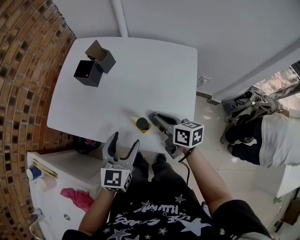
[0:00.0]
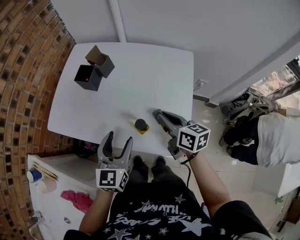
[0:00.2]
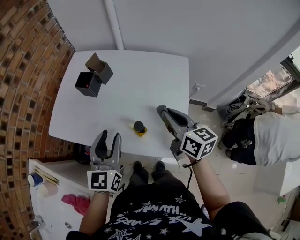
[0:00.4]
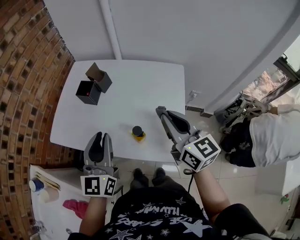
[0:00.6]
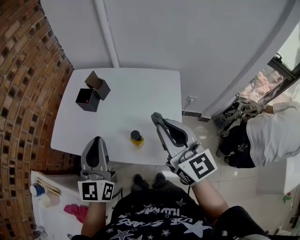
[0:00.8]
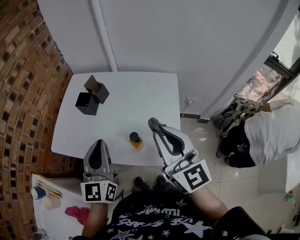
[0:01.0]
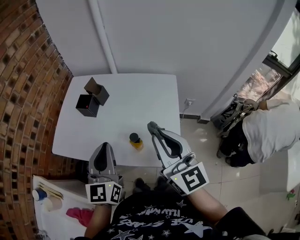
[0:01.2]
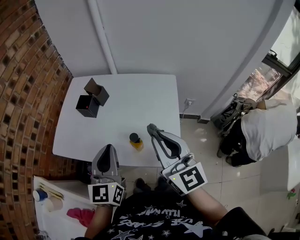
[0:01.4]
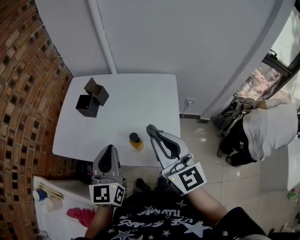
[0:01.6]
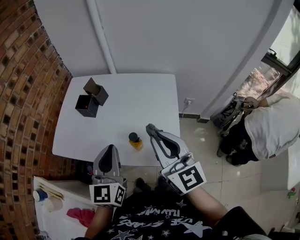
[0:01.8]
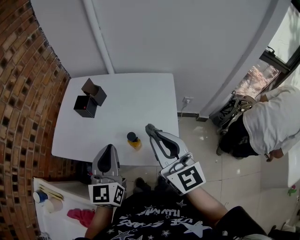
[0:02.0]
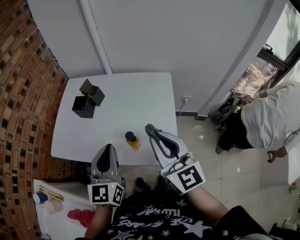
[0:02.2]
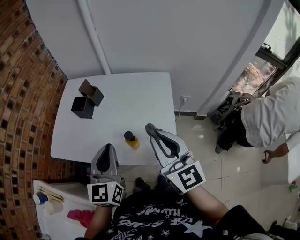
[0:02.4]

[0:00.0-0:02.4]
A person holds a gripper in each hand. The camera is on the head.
0:00.0 to 0:01.2: The right gripper heads upward, covering approximately 25 cm, and swivels about 50 degrees; the left gripper travels upward by approximately 15 cm, and closes up.
0:01.2 to 0:02.4: The grippers make only small movements.

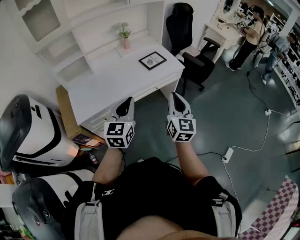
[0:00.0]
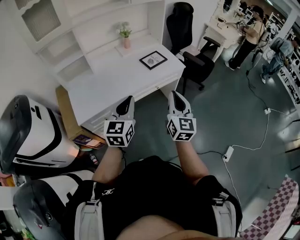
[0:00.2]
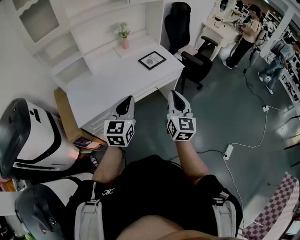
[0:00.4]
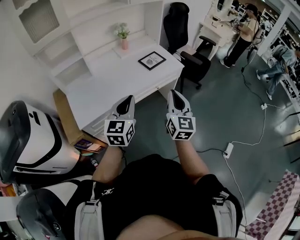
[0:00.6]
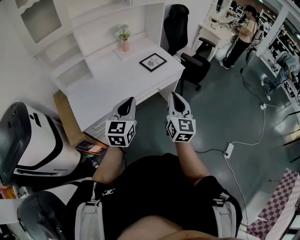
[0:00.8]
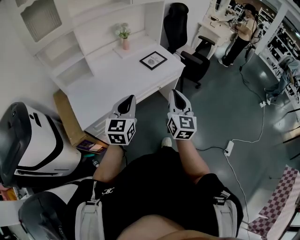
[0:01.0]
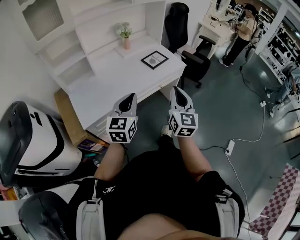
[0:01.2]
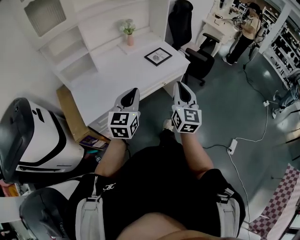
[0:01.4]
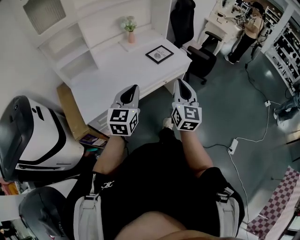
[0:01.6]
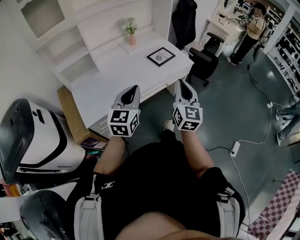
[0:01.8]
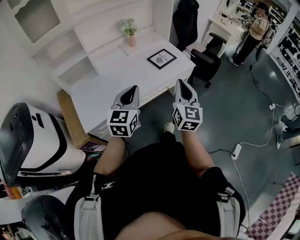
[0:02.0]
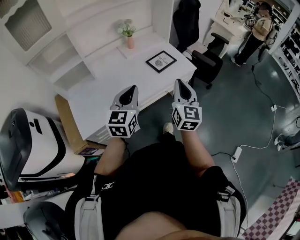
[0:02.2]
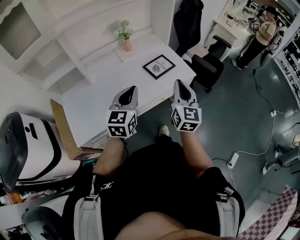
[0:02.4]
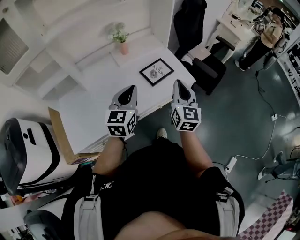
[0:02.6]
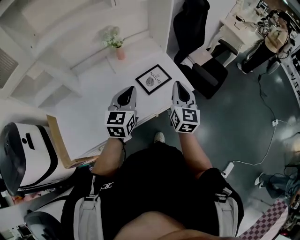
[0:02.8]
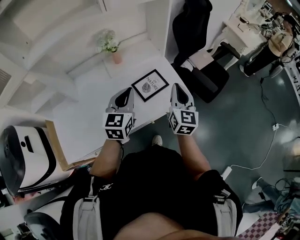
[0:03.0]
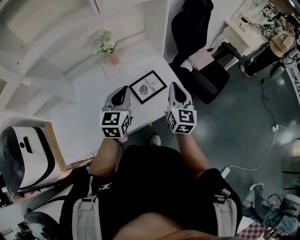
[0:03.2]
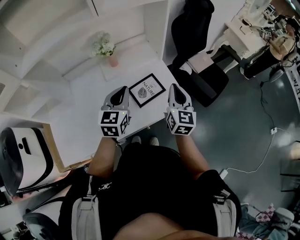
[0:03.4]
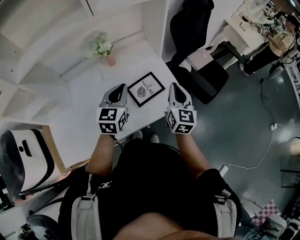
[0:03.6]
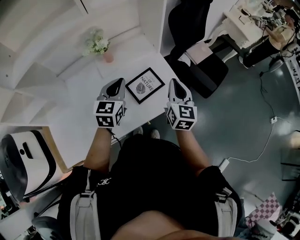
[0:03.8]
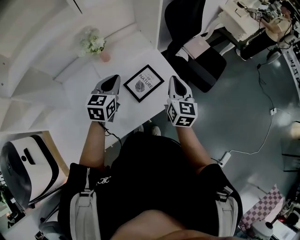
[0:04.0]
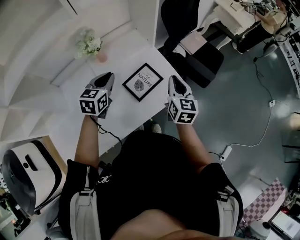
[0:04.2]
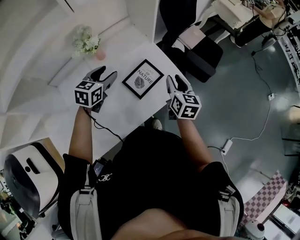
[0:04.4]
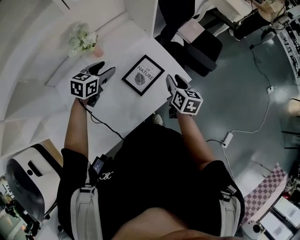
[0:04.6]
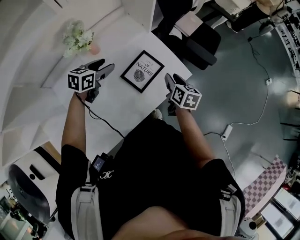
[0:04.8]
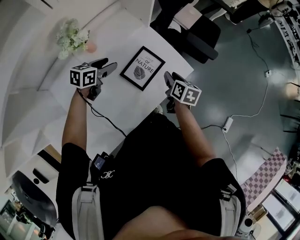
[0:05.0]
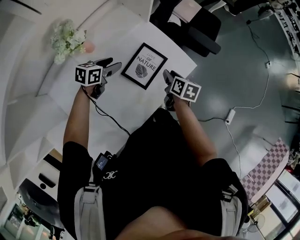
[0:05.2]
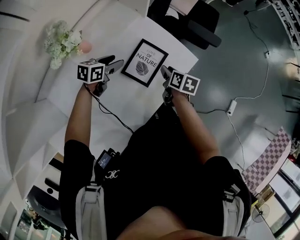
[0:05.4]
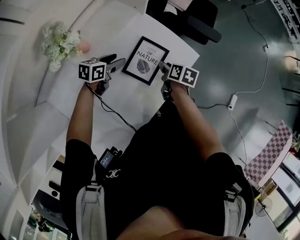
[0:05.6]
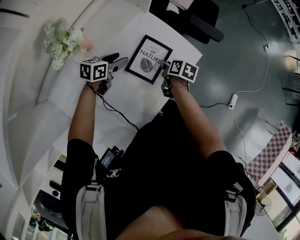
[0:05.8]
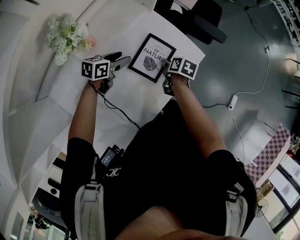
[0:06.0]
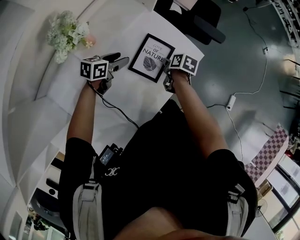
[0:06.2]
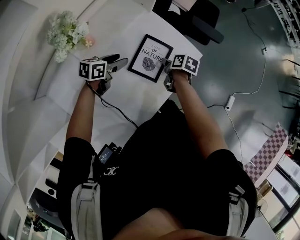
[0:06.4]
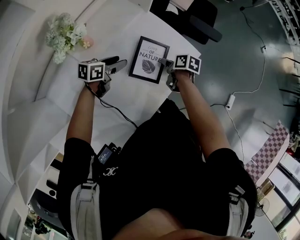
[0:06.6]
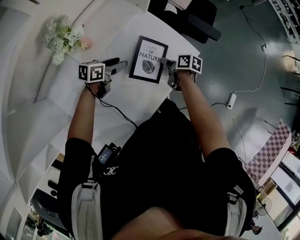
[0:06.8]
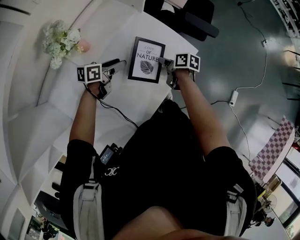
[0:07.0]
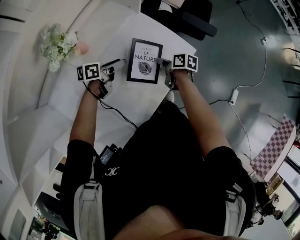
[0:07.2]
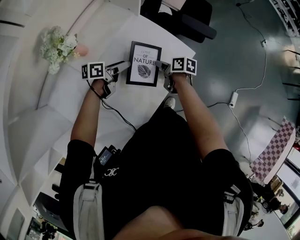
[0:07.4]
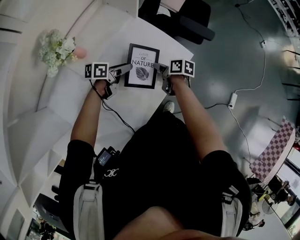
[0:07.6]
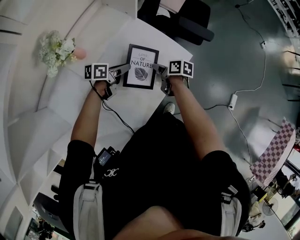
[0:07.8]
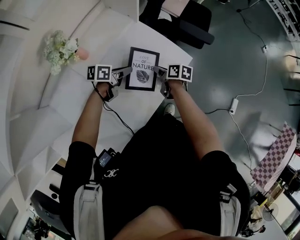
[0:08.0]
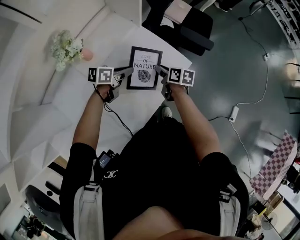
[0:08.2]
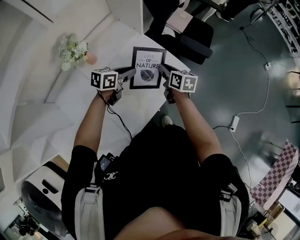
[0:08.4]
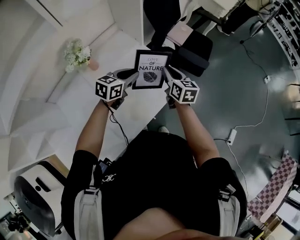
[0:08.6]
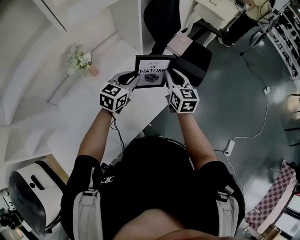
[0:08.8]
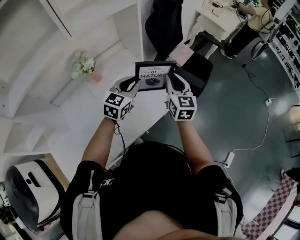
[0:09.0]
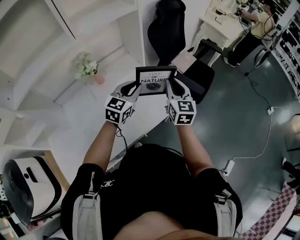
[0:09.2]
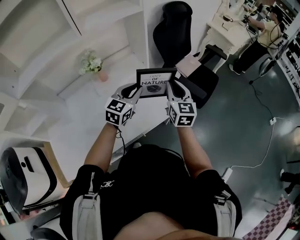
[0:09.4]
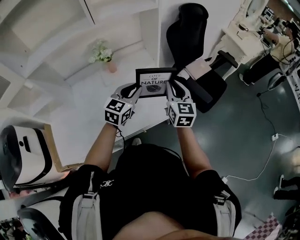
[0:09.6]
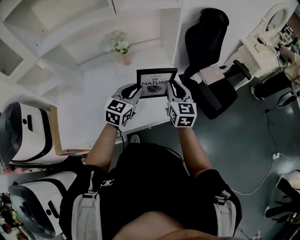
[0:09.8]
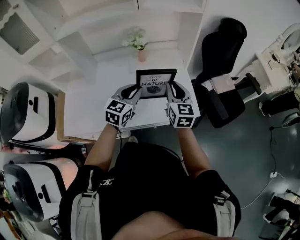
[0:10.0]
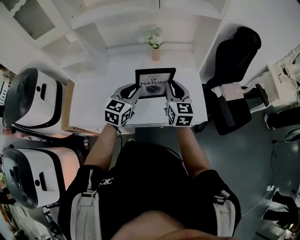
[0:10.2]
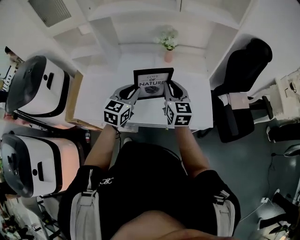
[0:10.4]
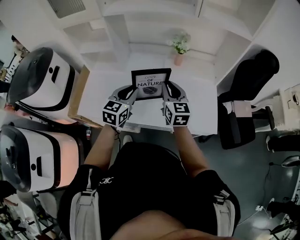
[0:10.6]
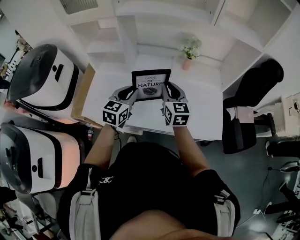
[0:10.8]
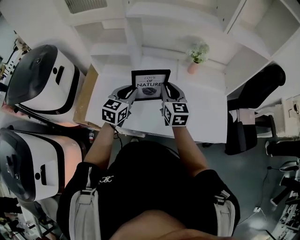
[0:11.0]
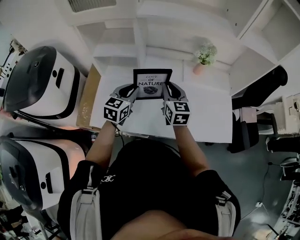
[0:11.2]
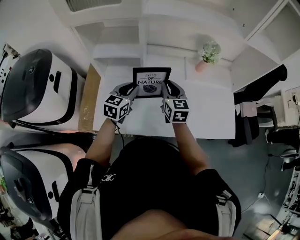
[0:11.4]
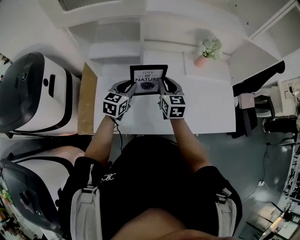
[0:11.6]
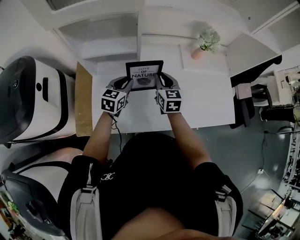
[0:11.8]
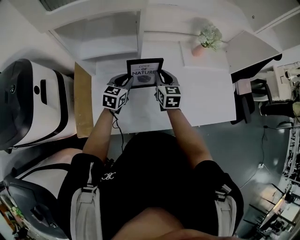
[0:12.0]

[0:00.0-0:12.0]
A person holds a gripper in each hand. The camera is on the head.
0:00.0 to 0:01.6: Both grippers travel together to the left, approximately 10 cm.
0:01.6 to 0:03.0: Both grippers are carried forward, roughly 40 cm.
0:03.0 to 0:04.4: The right gripper shifts some 10 cm downward and forward, swivels about 20 degrees, and opens. Meanwhile the left gripper is displaced forward, downward and to the left by roughly 20 cm, turns by some 30 degrees, and opens its fingers.
0:04.4 to 0:06.0: The two grippers go some 20 cm downward. The left gripper changes its angle by some 40 degrees, while the right gripper points its fingers approximately 40 degrees further downward.
0:06.0 to 0:07.6: The left gripper shifts approximately 5 cm to the right, and turns by approximately 20 degrees. The right gripper turns by approximately 20 degrees.
0:07.6 to 0:09.0: Both grippers move upward, roughly 25 cm. The left gripper swivels approximately 70 degrees, and closes; the right gripper angles its fingers upward, by about 30 degrees.
0:09.0 to 0:10.4: The left gripper shifts by some 25 cm, and swivels approximately 50 degrees. Meanwhile the right gripper moves about 25 cm, and rotates about 50 degrees.
0:10.4 to 0:12.0: Both grippers move to the left, forward and downward, roughly 35 cm.

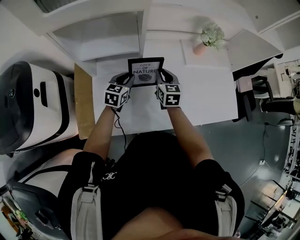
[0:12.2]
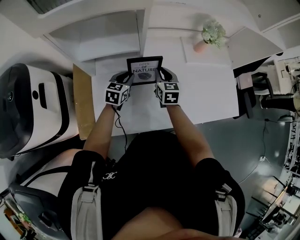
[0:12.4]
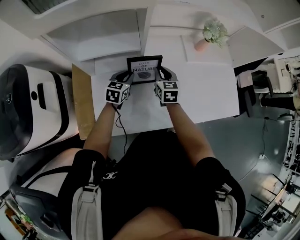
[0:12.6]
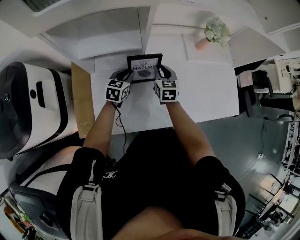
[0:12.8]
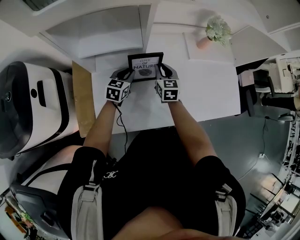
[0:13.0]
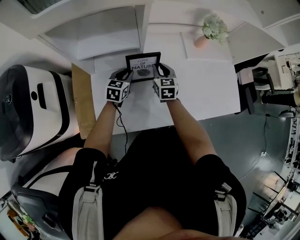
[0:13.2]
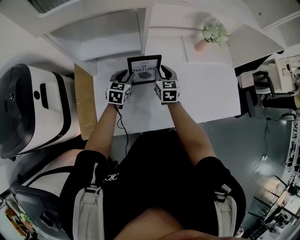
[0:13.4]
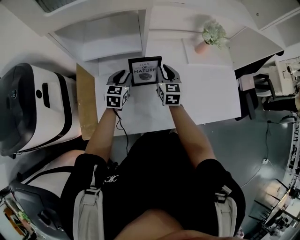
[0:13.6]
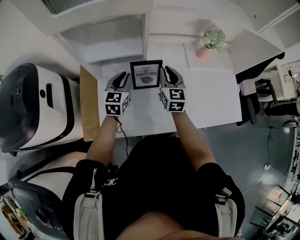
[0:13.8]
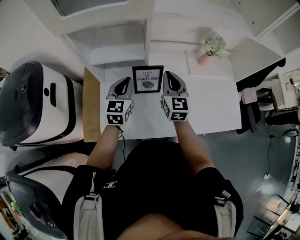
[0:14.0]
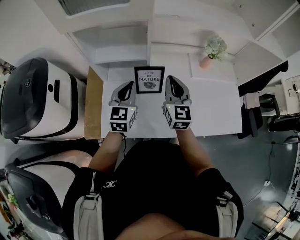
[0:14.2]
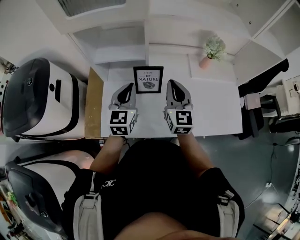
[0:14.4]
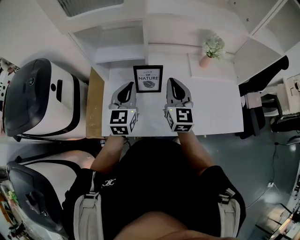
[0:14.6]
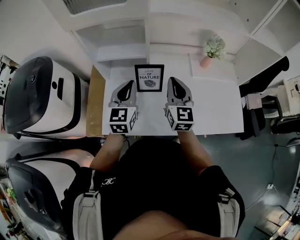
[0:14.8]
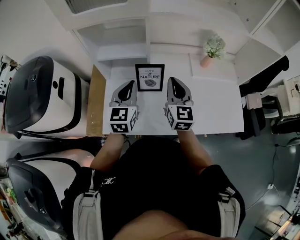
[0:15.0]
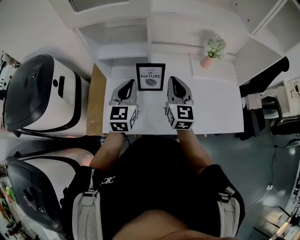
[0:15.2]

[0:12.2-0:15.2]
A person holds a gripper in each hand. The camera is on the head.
0:12.2 to 0:13.8: Both grippers travel together upward, approximately 5 cm.
0:13.8 to 0:15.2: Both grippers move upward and backward, about 15 cm.

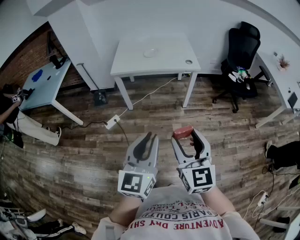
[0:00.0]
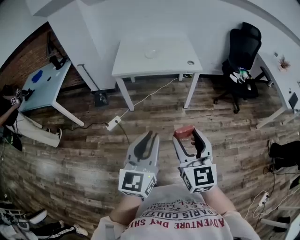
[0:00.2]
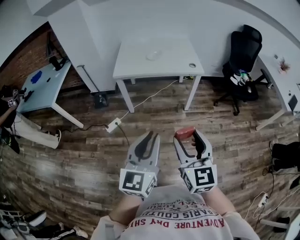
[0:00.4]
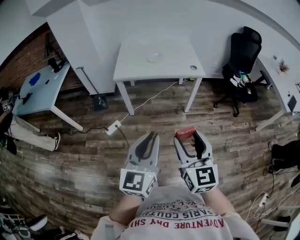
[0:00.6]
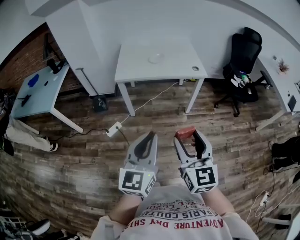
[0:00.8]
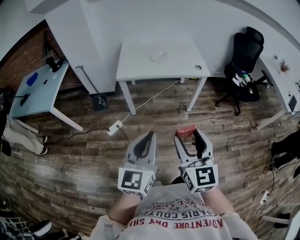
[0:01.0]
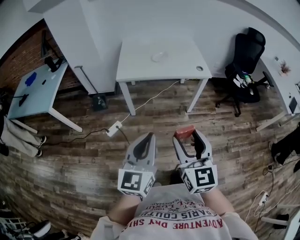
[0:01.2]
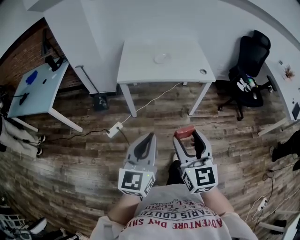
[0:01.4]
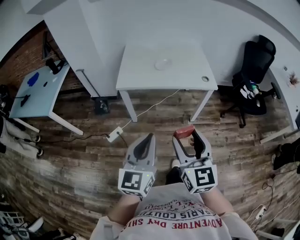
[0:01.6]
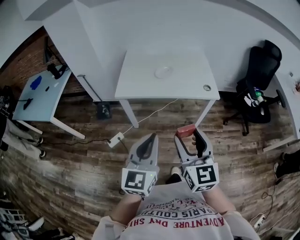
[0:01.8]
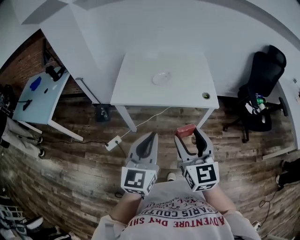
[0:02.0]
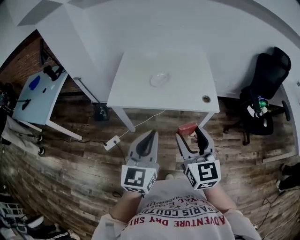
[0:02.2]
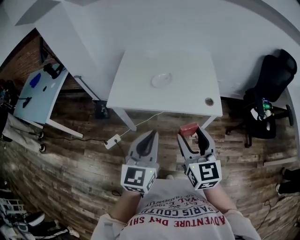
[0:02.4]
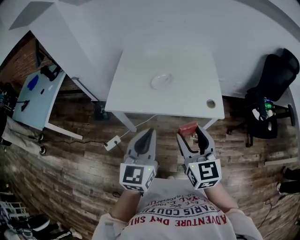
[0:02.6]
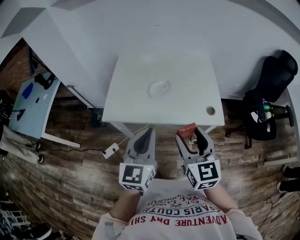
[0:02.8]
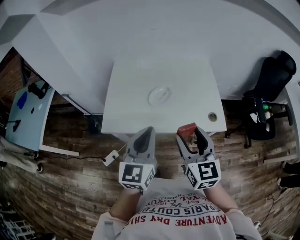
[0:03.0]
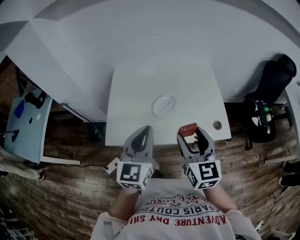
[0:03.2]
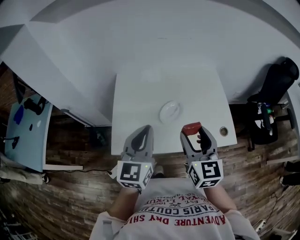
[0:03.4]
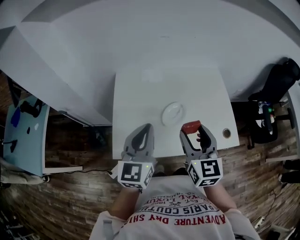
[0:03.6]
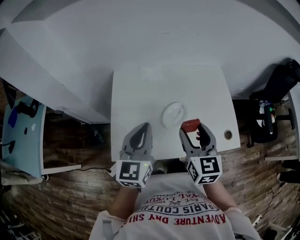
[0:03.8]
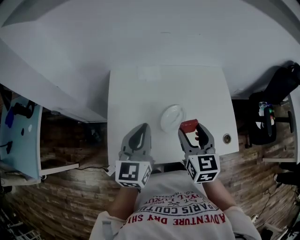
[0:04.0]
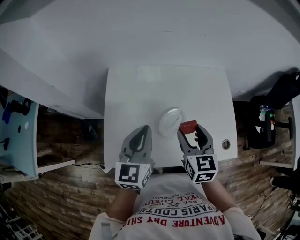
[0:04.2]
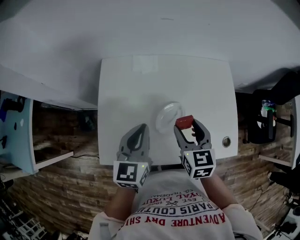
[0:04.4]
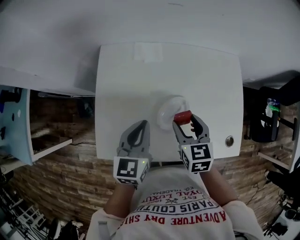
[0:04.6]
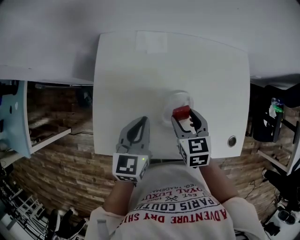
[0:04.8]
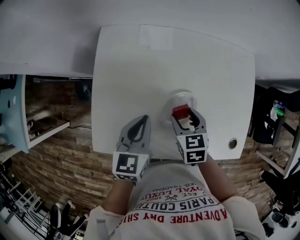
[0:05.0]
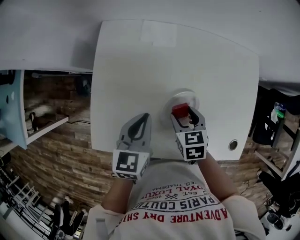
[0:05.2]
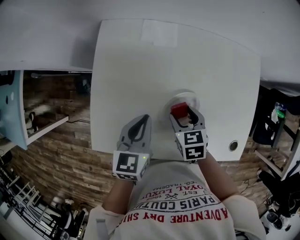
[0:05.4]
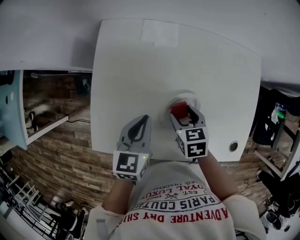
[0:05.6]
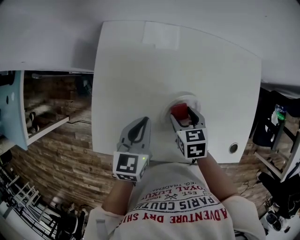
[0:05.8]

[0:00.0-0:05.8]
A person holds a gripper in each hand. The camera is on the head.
0:00.0 to 0:01.4: Both grippers move forward and to the left, approximately 20 cm.
0:01.4 to 0:02.8: The two grippers travel together, forward, roughly 40 cm.
0:02.8 to 0:04.4: Both grippers travel together forward, roughly 35 cm. The right gripper rotates roughly 20 degrees.
0:04.4 to 0:05.8: Both grippers travel together downward, approximately 15 cm. The right gripper changes its angle by about 30 degrees.
